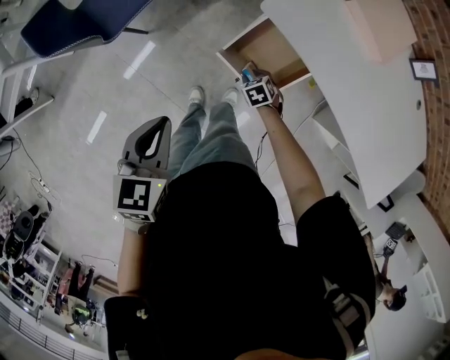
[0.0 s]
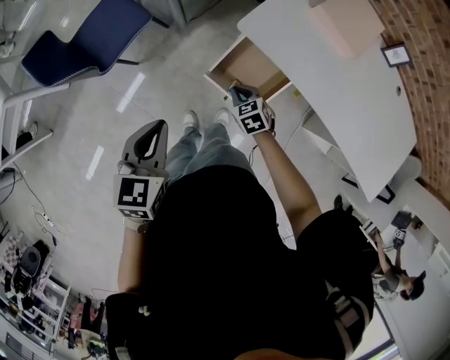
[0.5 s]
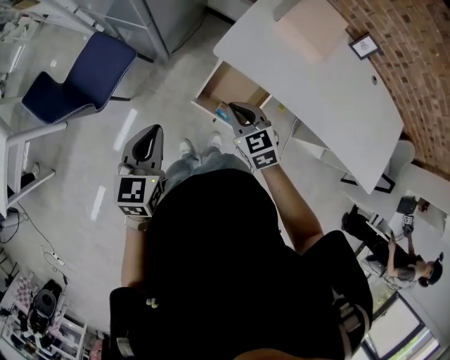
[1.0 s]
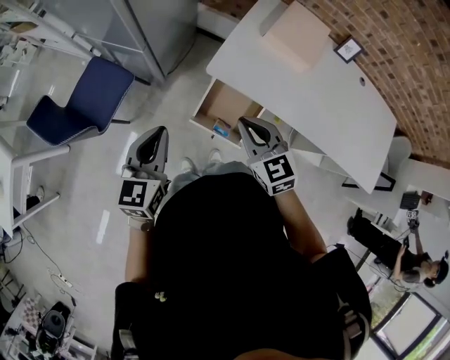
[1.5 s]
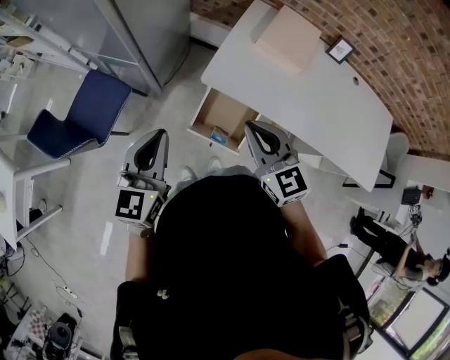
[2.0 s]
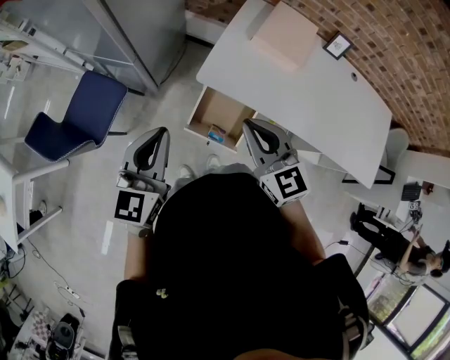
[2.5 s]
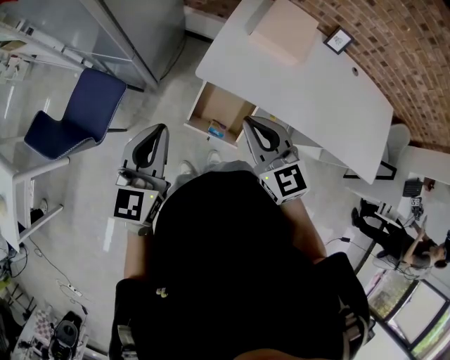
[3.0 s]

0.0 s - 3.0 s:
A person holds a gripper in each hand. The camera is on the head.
0.0 s - 1.5 s: The right gripper is displaced upward by some 40 cm, angles its fingers upward, by roughly 40 degrees, and closes up, while the left gripper is displaced forward and upward by approximately 15 cm, and turns by roughly 30 degrees.
1.5 s - 3.0 s: Both grippers travel together upward, about 5 cm.

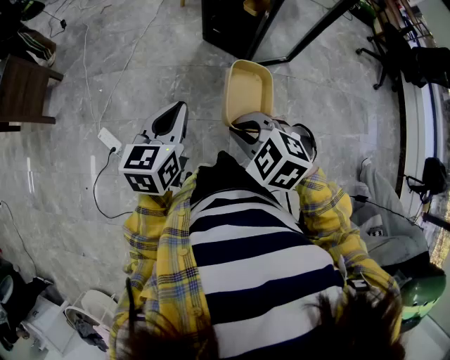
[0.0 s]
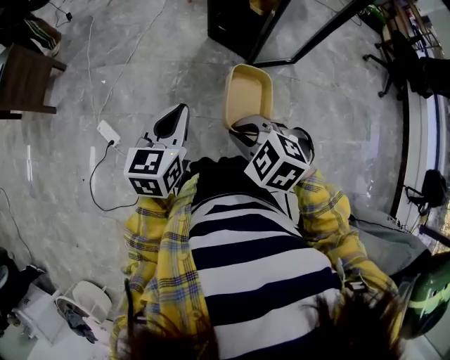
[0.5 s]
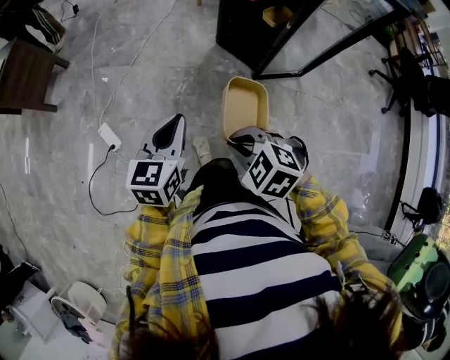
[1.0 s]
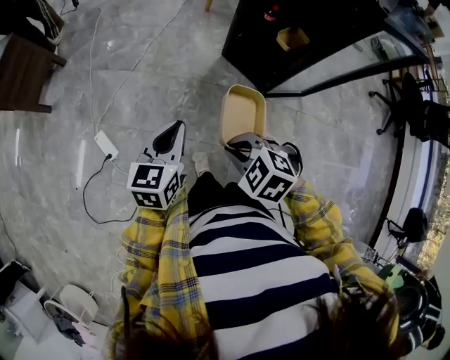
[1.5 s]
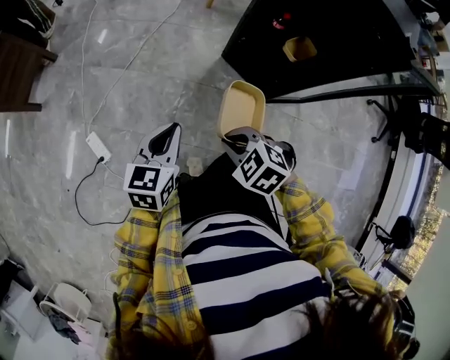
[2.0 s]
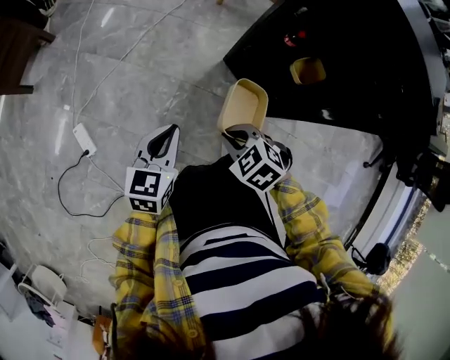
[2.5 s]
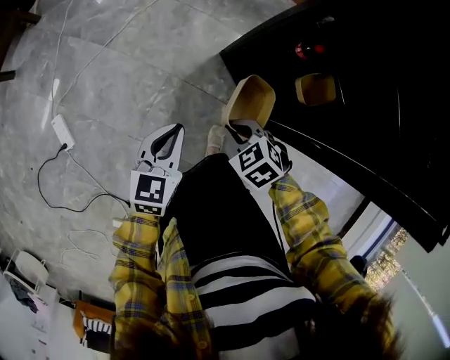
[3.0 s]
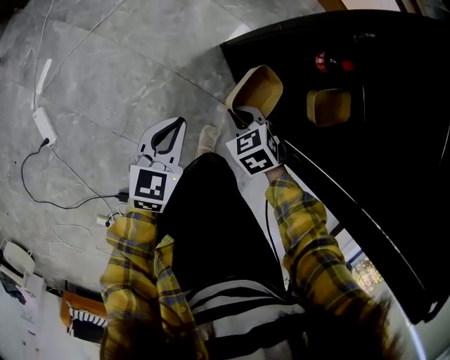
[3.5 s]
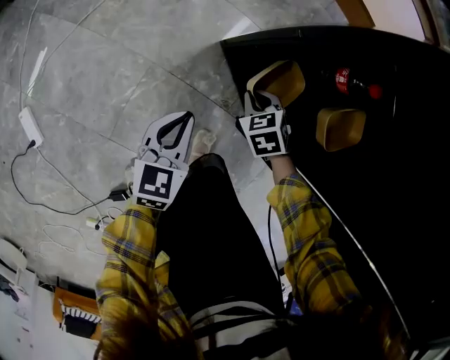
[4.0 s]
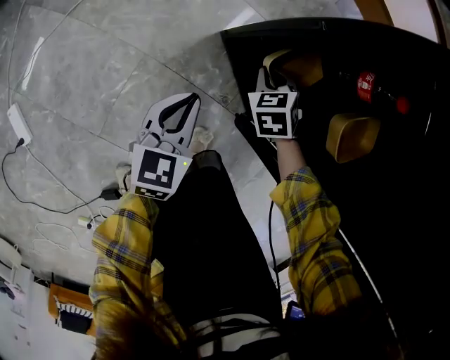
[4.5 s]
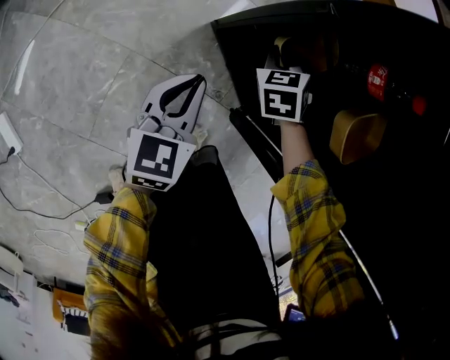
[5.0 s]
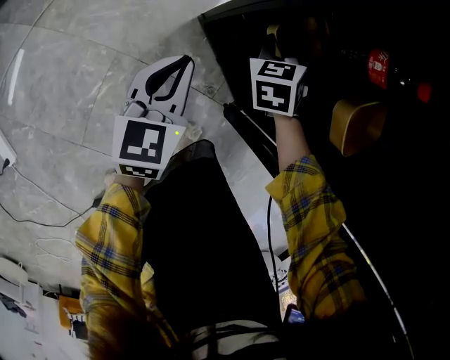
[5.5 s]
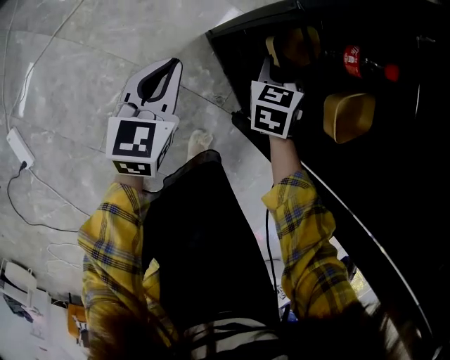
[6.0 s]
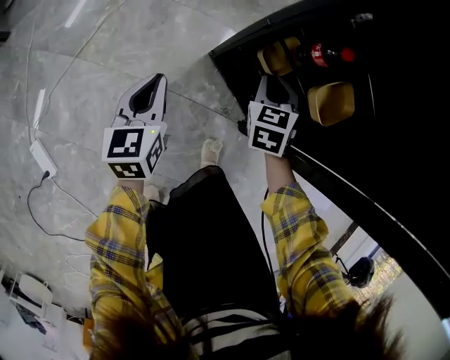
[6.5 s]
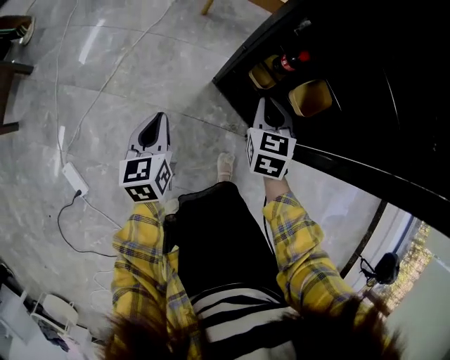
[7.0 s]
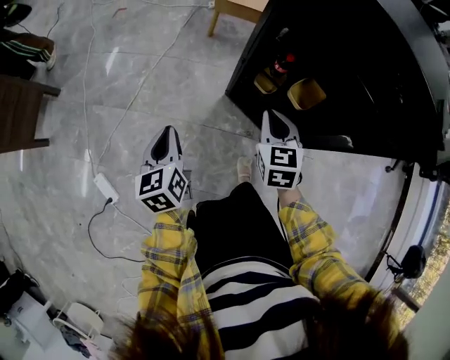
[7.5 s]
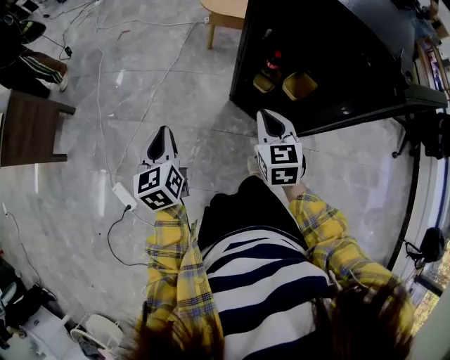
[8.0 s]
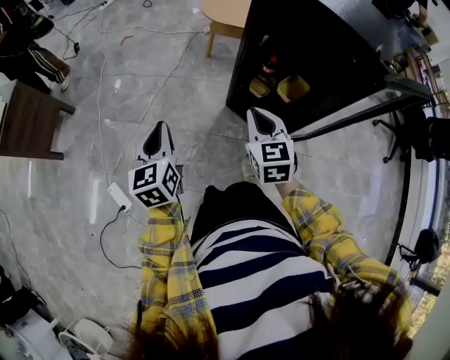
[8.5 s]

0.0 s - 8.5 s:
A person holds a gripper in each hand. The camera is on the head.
0.0 s - 2.0 s: The grippers both shift forward and downward by about 25 cm.
2.0 s - 4.0 s: The left gripper shifts about 40 cm downward, to the right and forward, while the right gripper goes approximately 60 cm downward, forward and to the right.
4.0 s - 6.5 s: The left gripper is displaced to the left and forward by some 10 cm; the right gripper moves upward and forward, some 15 cm, and turns by roughly 40 degrees.
6.5 s - 8.5 s: The two grippers go some 40 cm upward and backward. The right gripper swivels some 30 degrees.

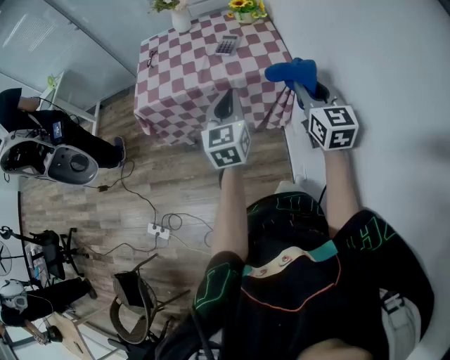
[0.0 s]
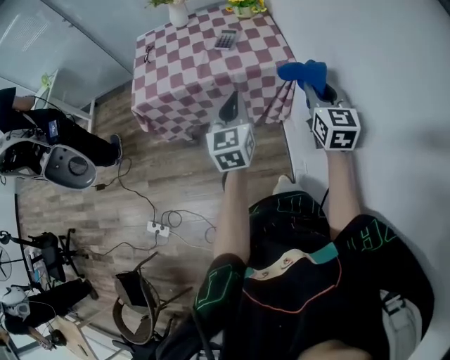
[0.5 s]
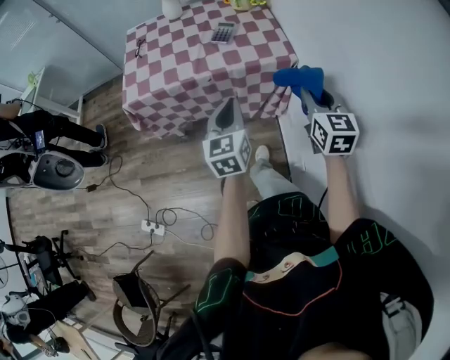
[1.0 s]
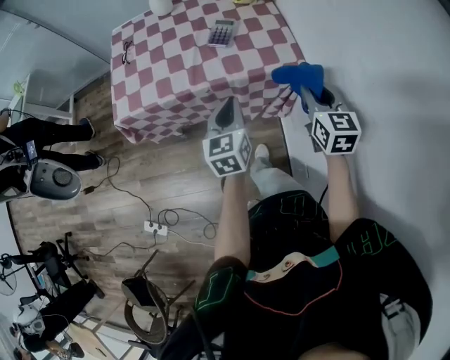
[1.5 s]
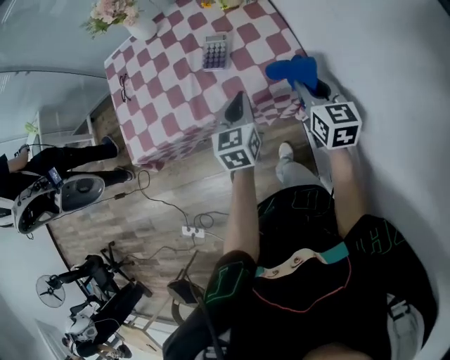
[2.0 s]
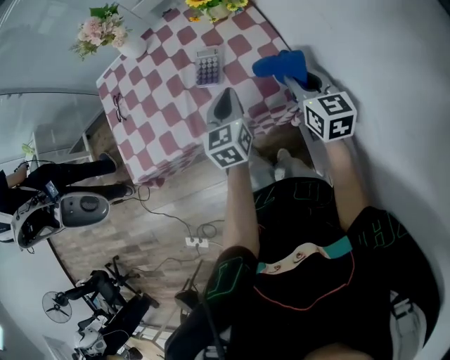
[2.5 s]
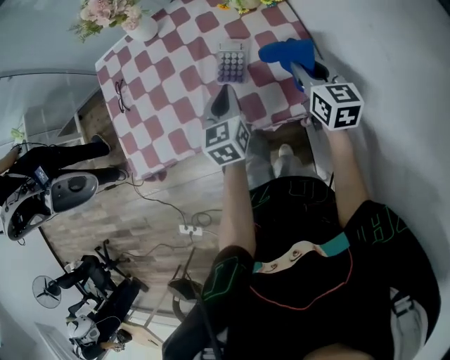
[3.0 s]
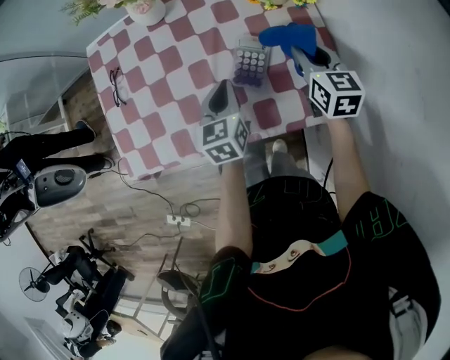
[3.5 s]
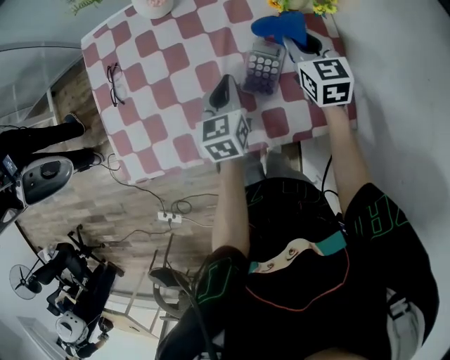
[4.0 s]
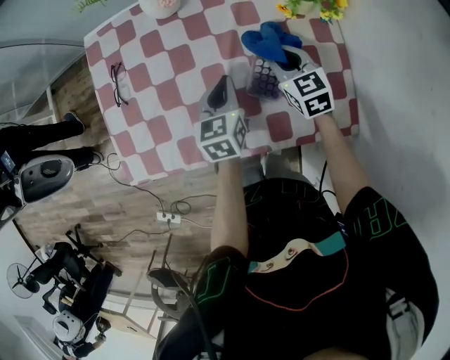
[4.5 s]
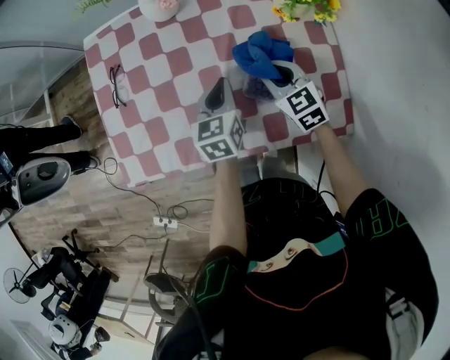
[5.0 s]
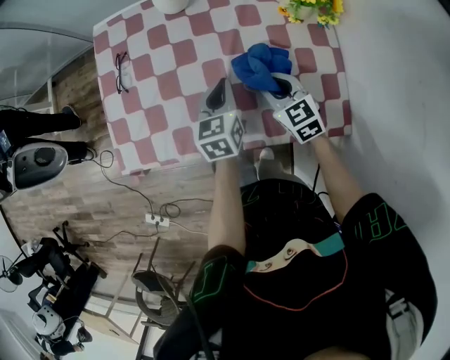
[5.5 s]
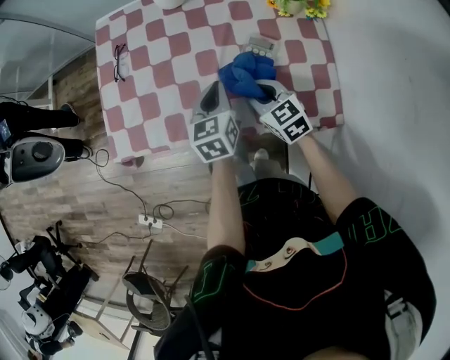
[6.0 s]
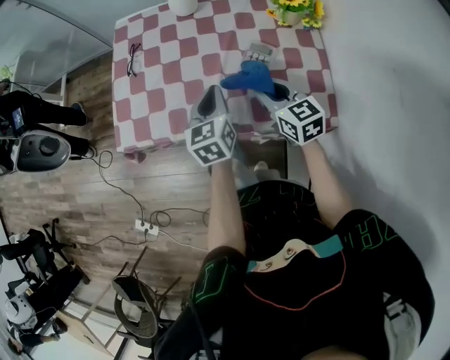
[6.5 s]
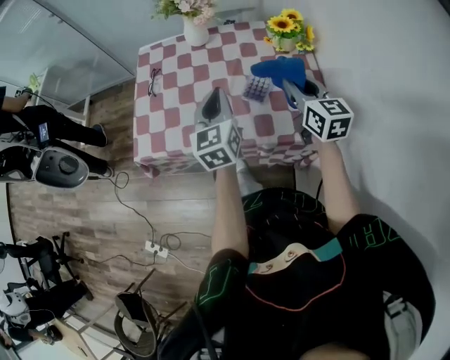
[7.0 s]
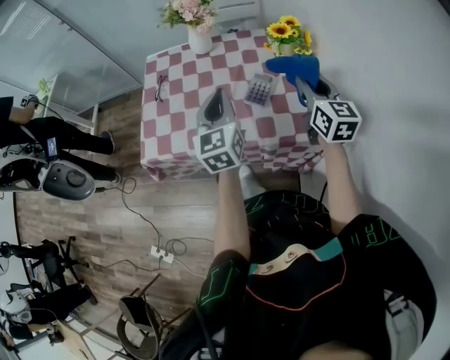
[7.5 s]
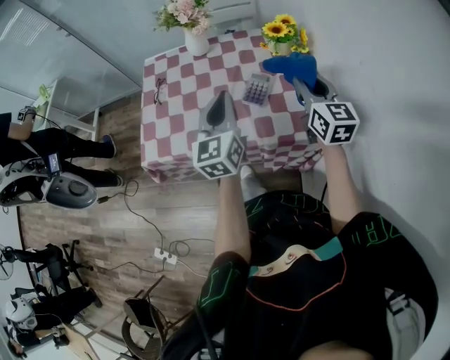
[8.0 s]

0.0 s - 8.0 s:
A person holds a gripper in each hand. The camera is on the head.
0.0 s - 2.0 s: The two grippers go about 25 cm forward and downward. The left gripper swivels some 20 degrees; the right gripper changes its angle by roughly 20 degrees.
2.0 s - 4.0 s: Both grippers move forward and to the left, roughly 30 cm.
4.0 s - 6.0 s: The left gripper shifts approximately 5 cm backward, while the right gripper goes some 20 cm backward, to the left and downward, and changes its angle by approximately 30 degrees.
6.0 s - 8.0 s: The left gripper moves upward, about 20 cm, and rotates approximately 30 degrees. The right gripper is displaced upward and to the right by approximately 25 cm, and points its fingers some 30 degrees further upward.

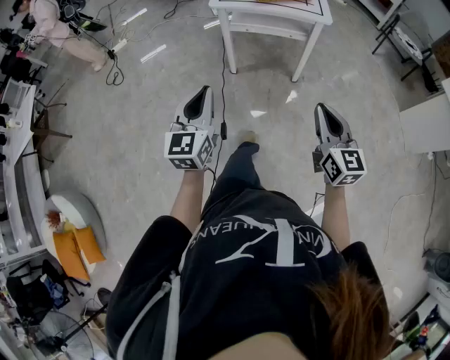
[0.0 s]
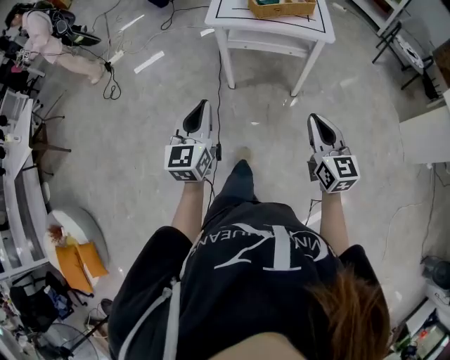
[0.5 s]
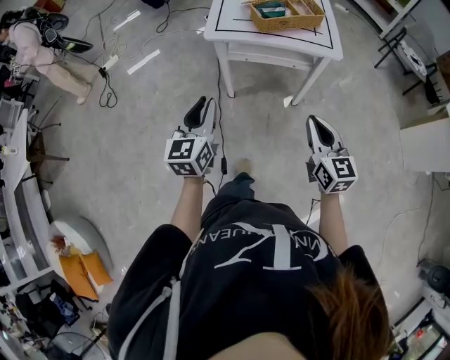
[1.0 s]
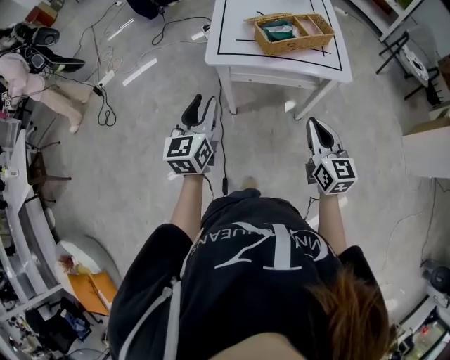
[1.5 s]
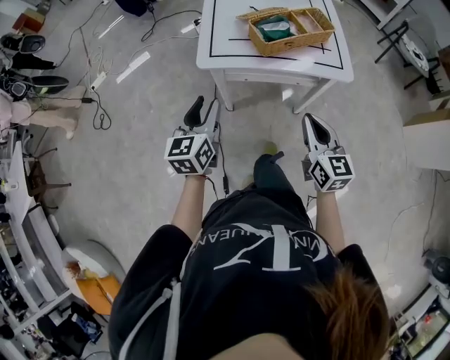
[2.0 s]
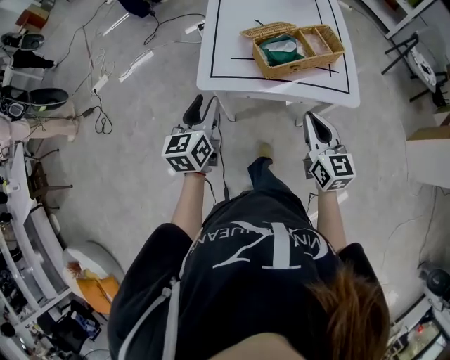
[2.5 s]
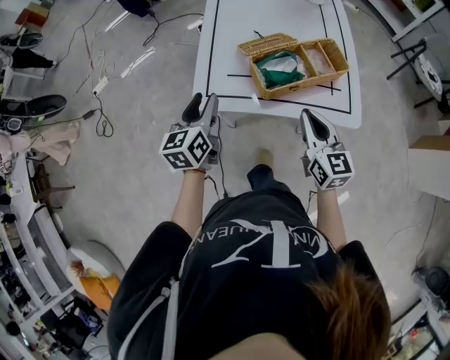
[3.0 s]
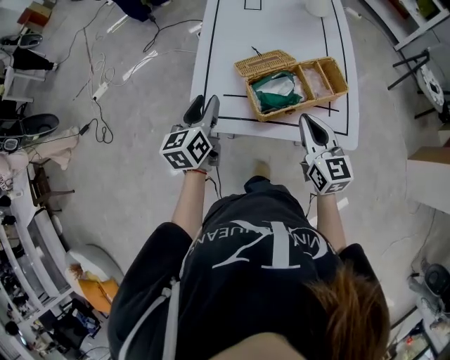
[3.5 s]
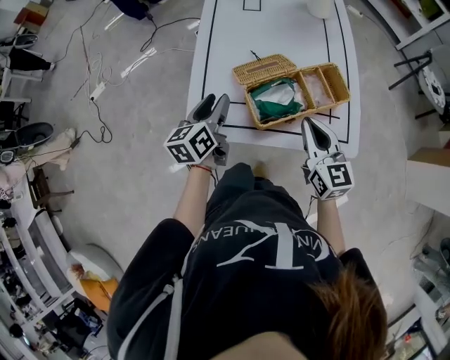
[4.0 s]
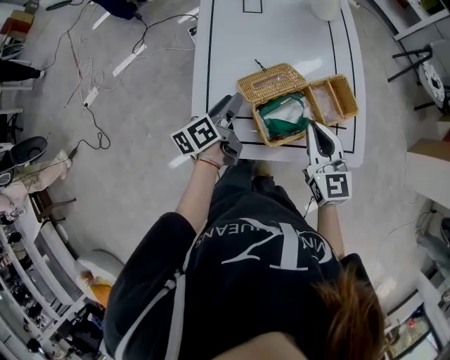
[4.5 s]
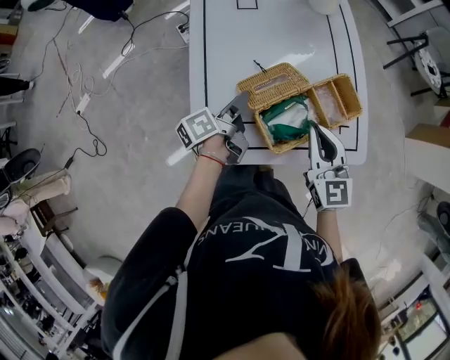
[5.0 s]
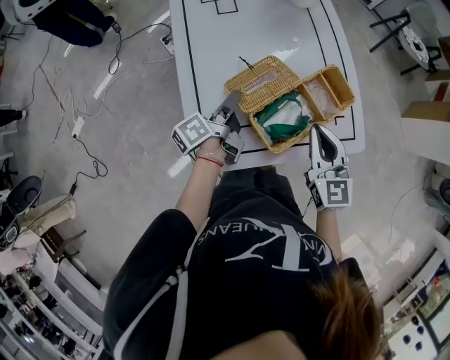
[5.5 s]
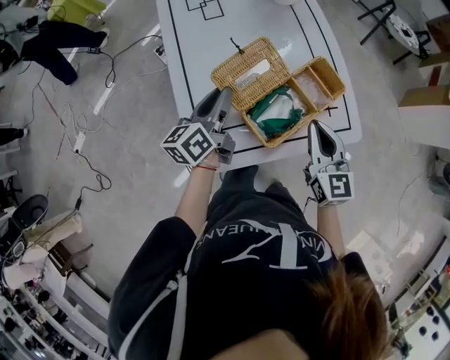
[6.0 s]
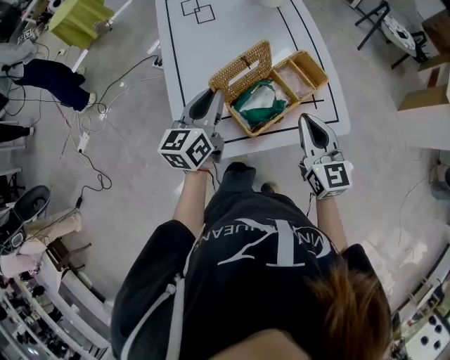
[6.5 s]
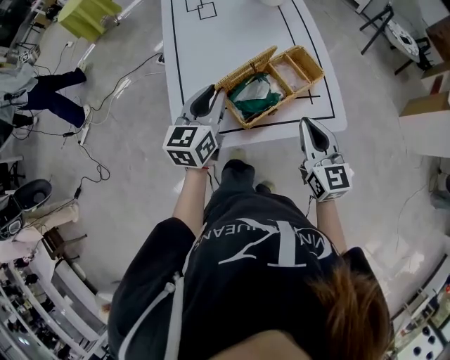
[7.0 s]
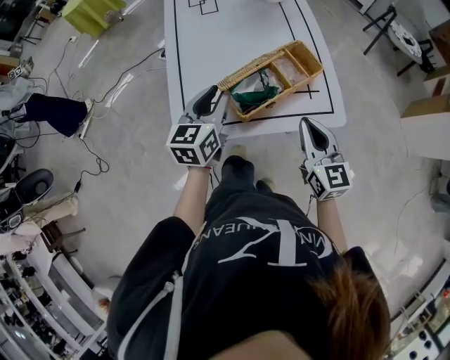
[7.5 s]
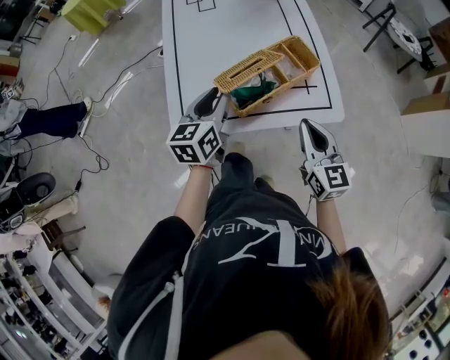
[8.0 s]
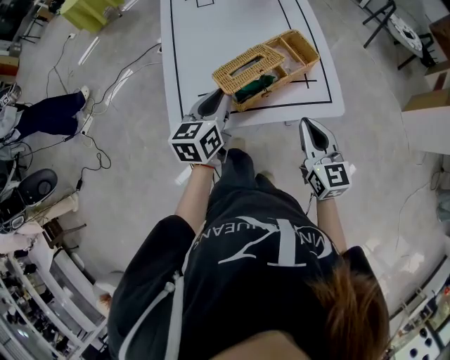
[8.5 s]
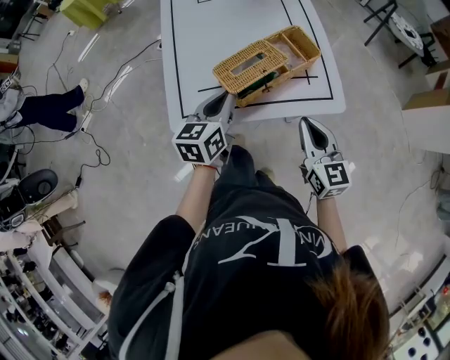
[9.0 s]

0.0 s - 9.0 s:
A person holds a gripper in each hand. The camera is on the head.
0.0 s - 2.0 s: The grippers both shift forward by some 40 cm. The left gripper opens.
2.0 s - 4.5 s: Both grippers travel together forward, approximately 35 cm. The left gripper rolls counterclockwise, seen from behind, by roughly 40 degrees.
4.5 s - 7.0 s: The right gripper shifts about 10 cm backward and to the right; the left gripper shifts about 10 cm upward and to the right, rotates around the line of its fingers by about 50 degrees, clockwise from behind, and closes.
7.0 s - 9.0 s: Both grippers travel together backward, about 5 cm.
